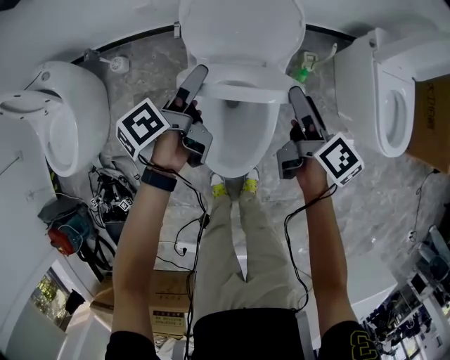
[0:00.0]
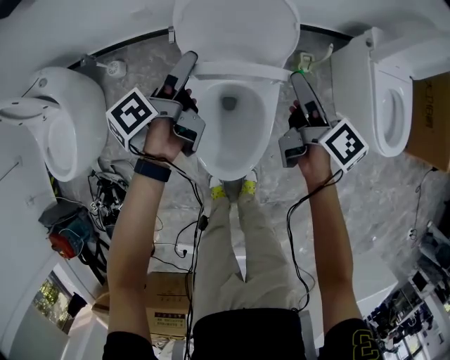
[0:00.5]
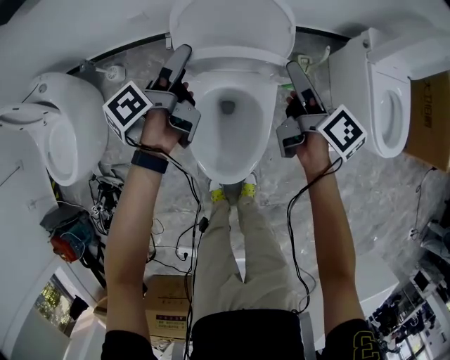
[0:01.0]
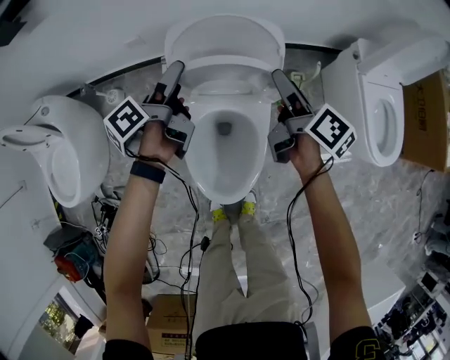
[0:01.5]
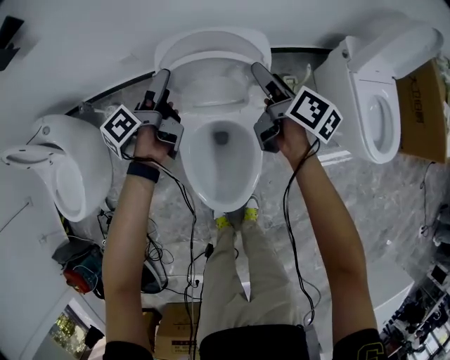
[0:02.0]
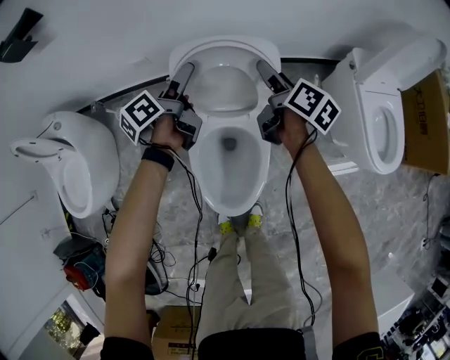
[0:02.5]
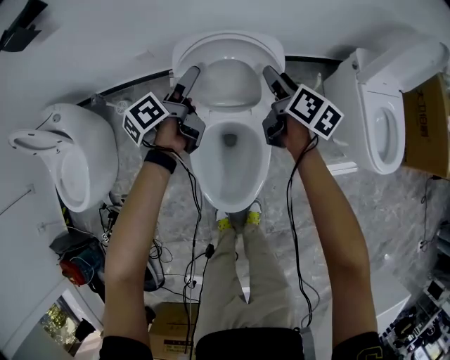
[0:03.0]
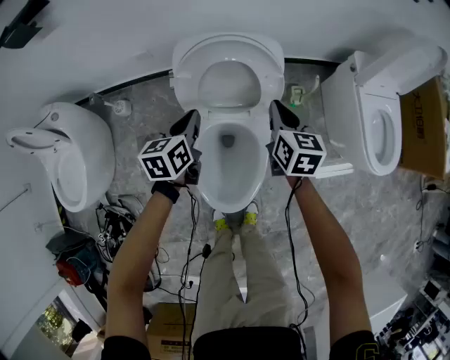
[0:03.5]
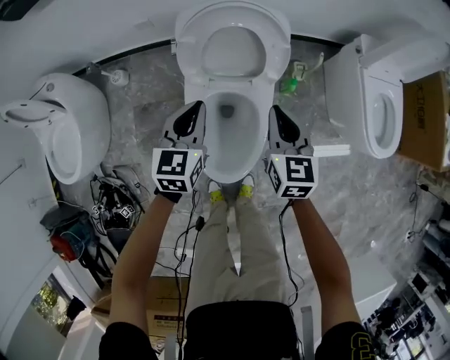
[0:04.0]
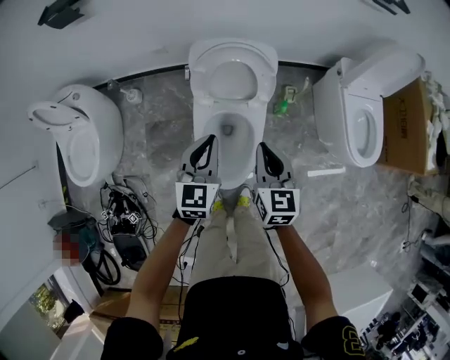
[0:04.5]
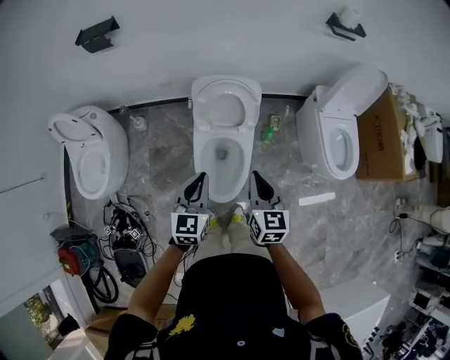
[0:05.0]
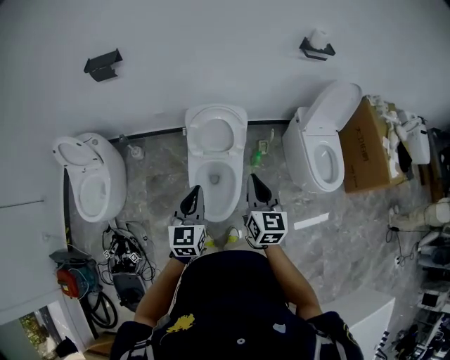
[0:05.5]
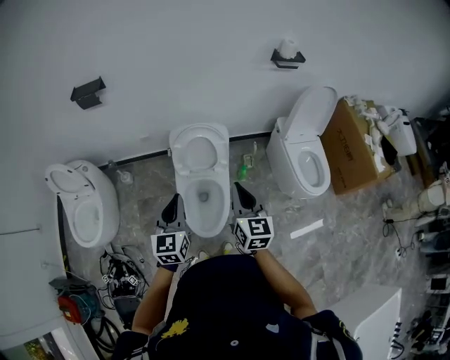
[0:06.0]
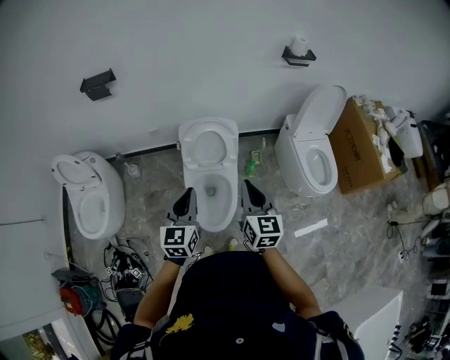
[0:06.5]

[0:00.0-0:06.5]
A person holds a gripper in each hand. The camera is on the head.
0:00.0 to 0:02.0: Both grippers move forward, some 10 cm.
0:02.0 to 0:04.5: The grippers both shift backward and upward by about 25 cm. The right gripper rotates around the line of its fingers by some 50 degrees, counterclockwise from behind, and closes up, while the left gripper twists approximately 80 degrees clockwise, seen from behind, and closes.
0:04.5 to 0:06.5: The two grippers go approximately 25 cm upward and backward.

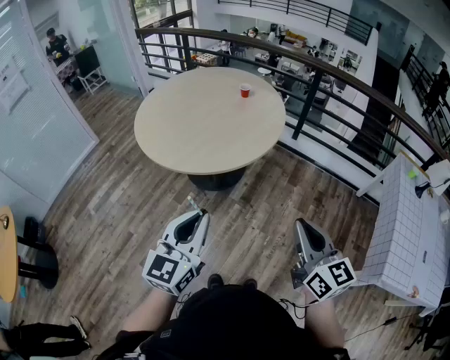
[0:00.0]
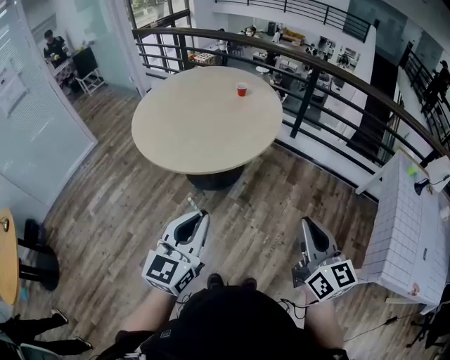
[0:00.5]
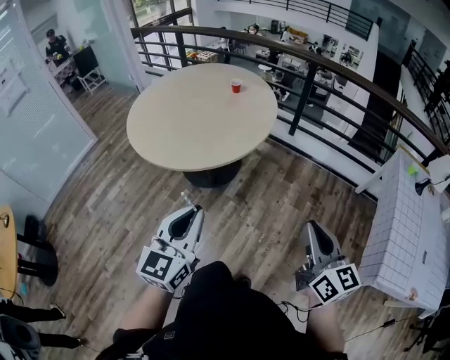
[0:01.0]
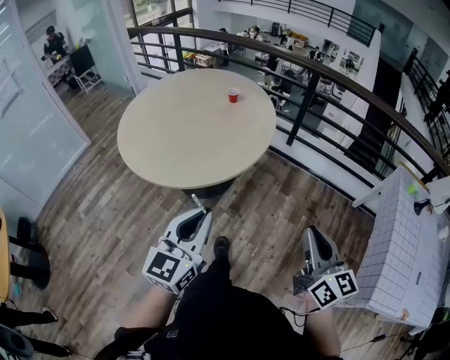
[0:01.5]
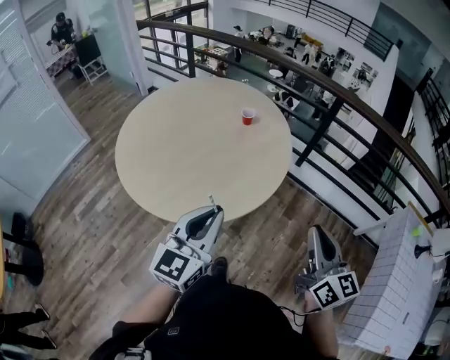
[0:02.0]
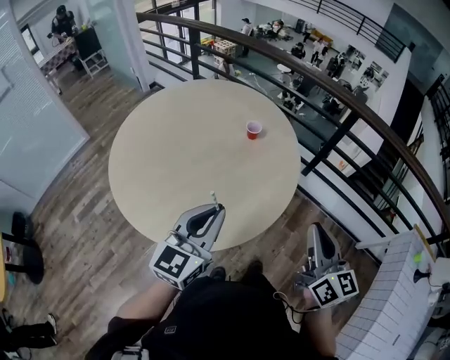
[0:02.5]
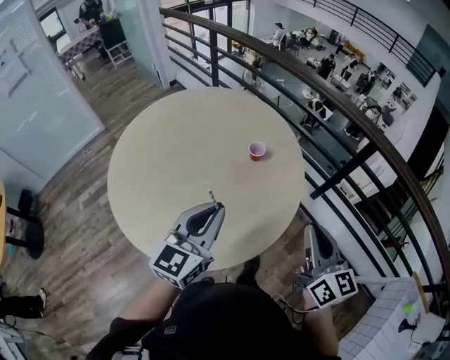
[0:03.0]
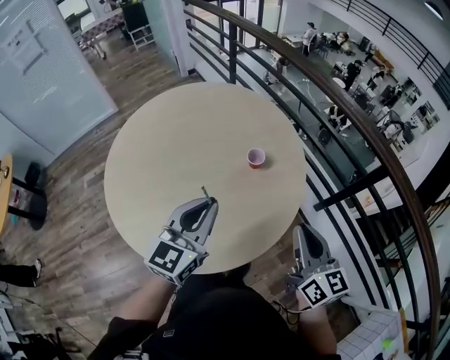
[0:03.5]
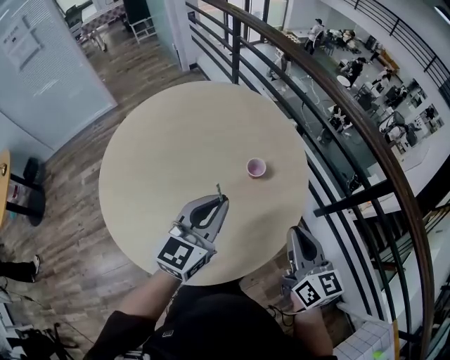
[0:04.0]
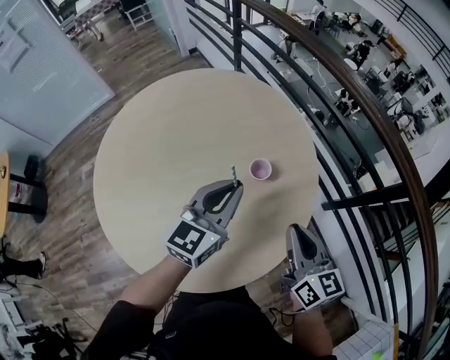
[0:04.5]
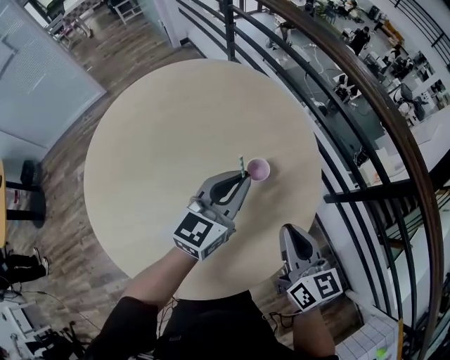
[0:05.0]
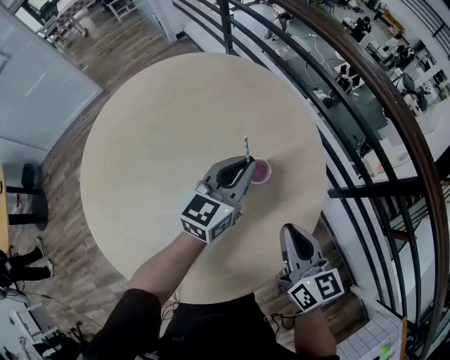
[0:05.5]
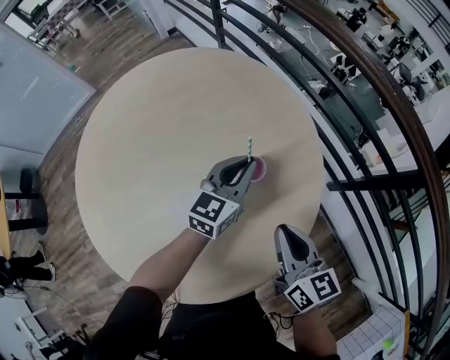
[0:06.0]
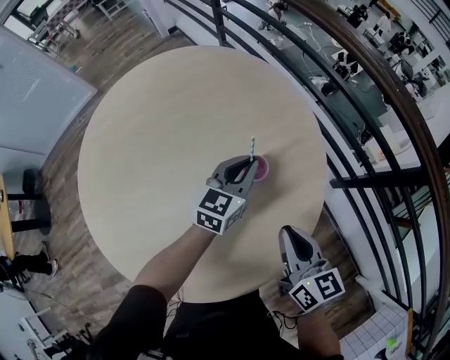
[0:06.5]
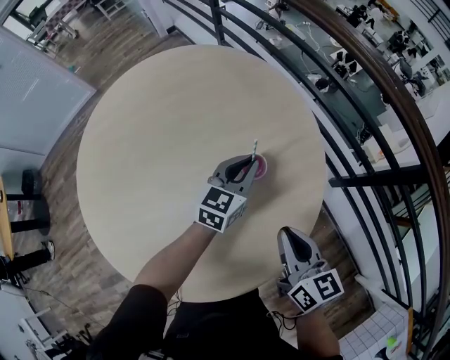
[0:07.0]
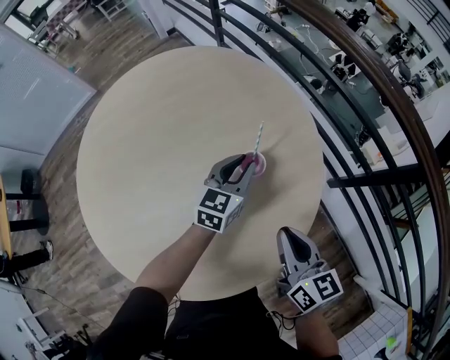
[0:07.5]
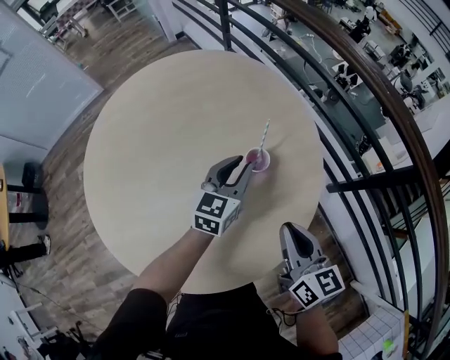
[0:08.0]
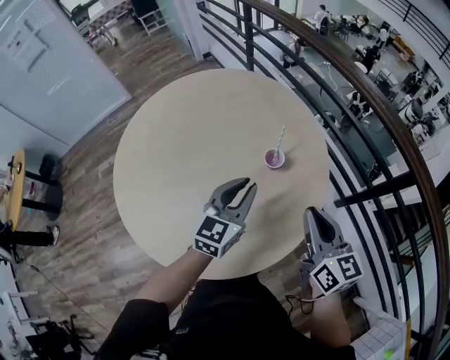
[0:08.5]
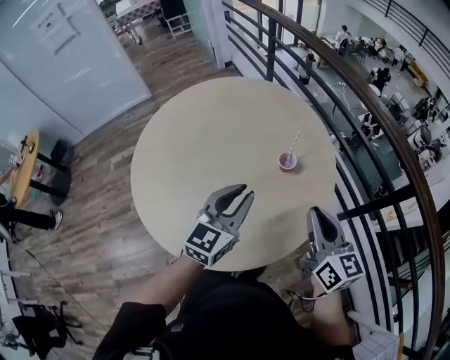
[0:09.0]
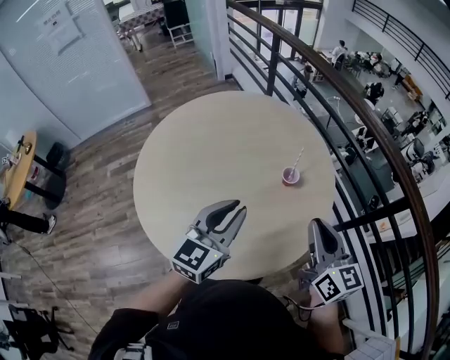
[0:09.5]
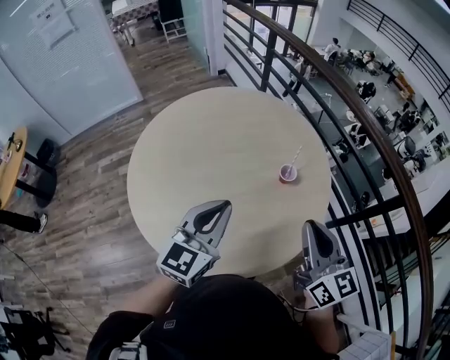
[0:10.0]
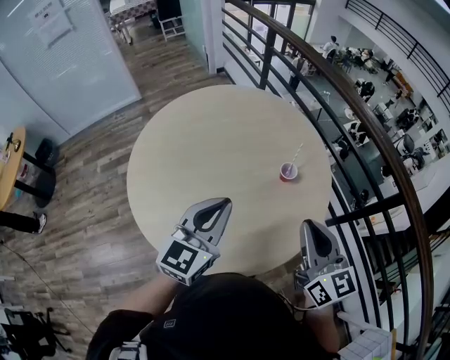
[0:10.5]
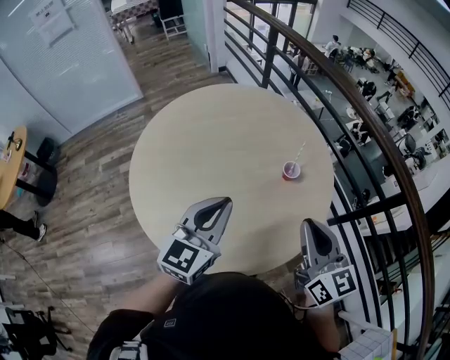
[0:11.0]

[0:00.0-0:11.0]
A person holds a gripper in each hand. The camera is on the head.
0:00.0 to 0:02.0: Both grippers travel together forward, about 30 cm.
0:02.0 to 0:03.5: The grippers both shift forward by roughly 35 cm. The right gripper swivels roughly 30 degrees, while the left gripper turns by approximately 20 degrees.
0:03.5 to 0:05.5: The grippers both shift forward and downward by some 25 cm.
0:05.5 to 0:07.5: The left gripper shifts approximately 10 cm downward.
0:07.5 to 0:09.0: The left gripper moves backward, upward and to the left, roughly 30 cm; the right gripper shifts approximately 15 cm upward.
0:09.0 to 0:11.0: Both grippers travel together to the left, roughly 10 cm.

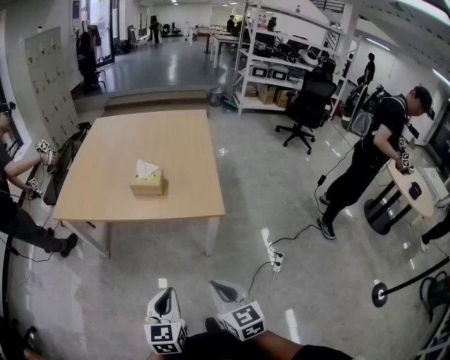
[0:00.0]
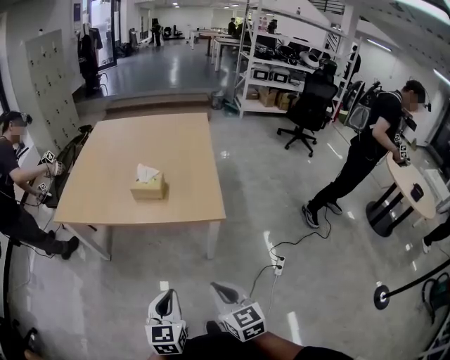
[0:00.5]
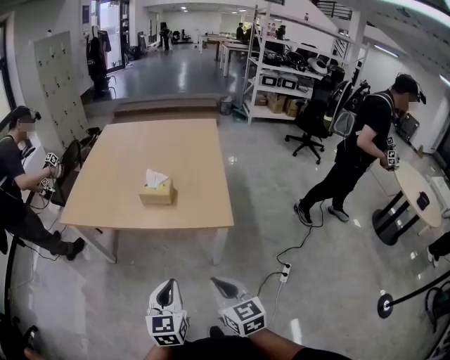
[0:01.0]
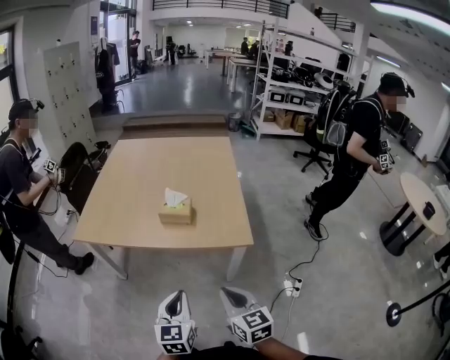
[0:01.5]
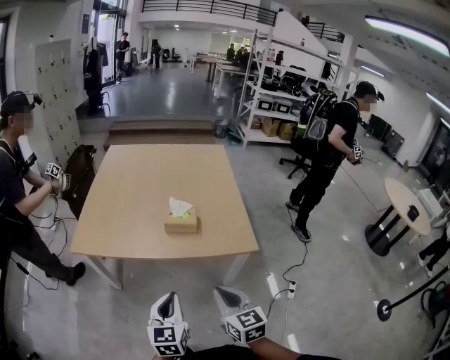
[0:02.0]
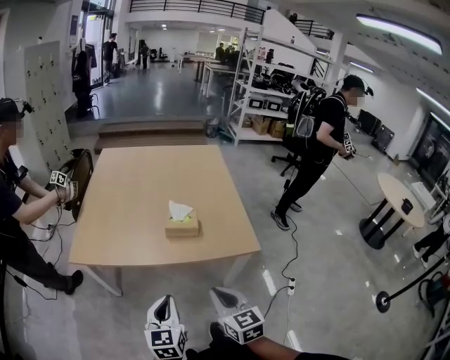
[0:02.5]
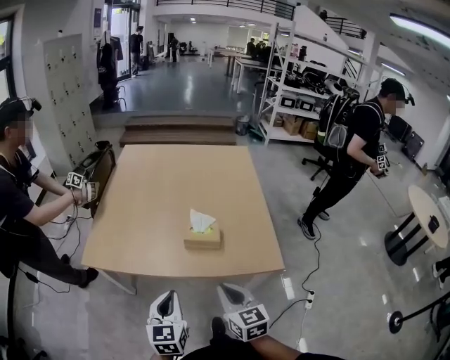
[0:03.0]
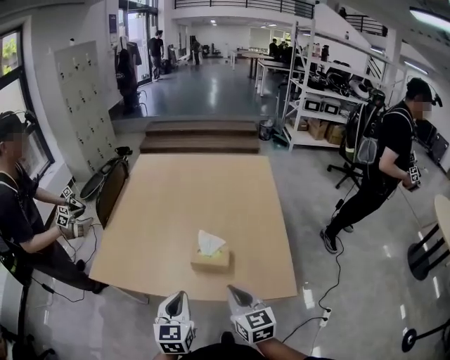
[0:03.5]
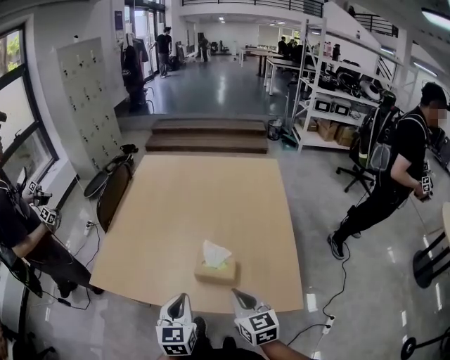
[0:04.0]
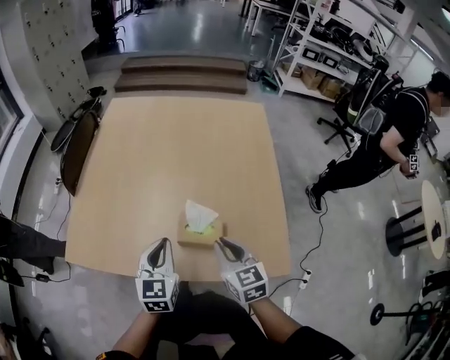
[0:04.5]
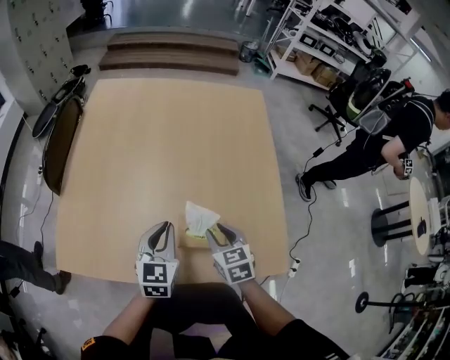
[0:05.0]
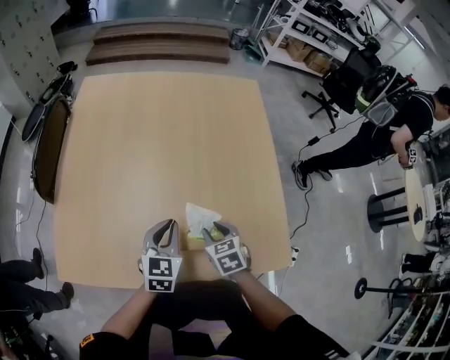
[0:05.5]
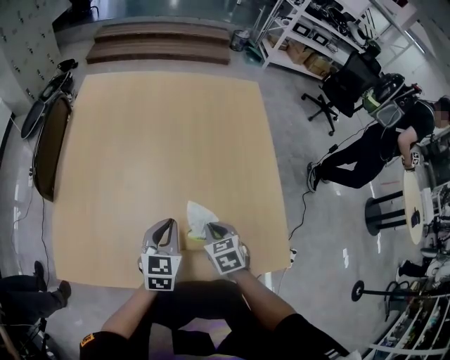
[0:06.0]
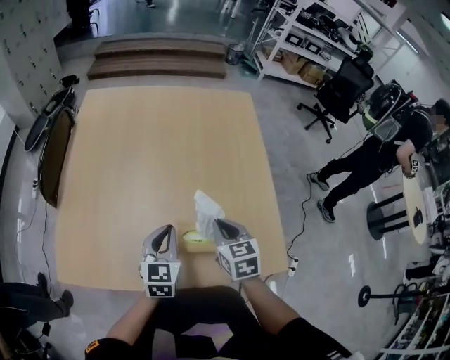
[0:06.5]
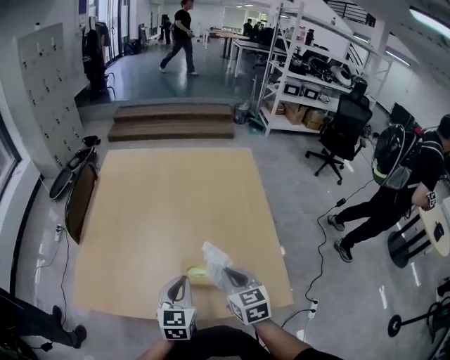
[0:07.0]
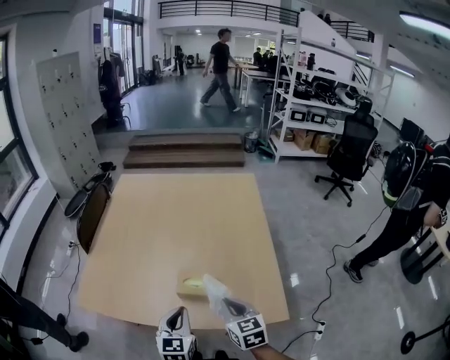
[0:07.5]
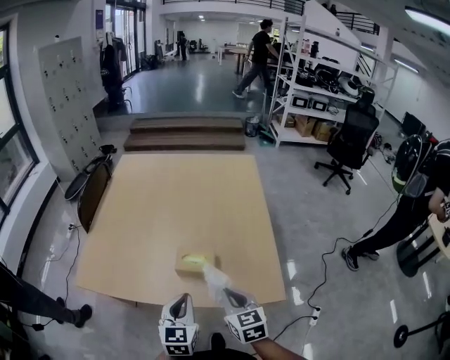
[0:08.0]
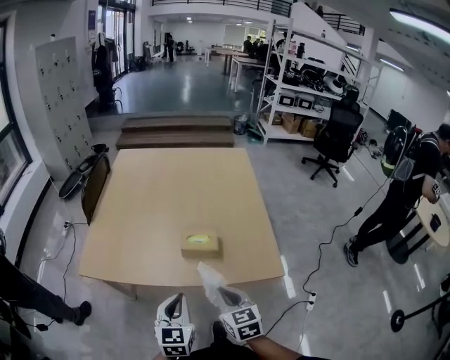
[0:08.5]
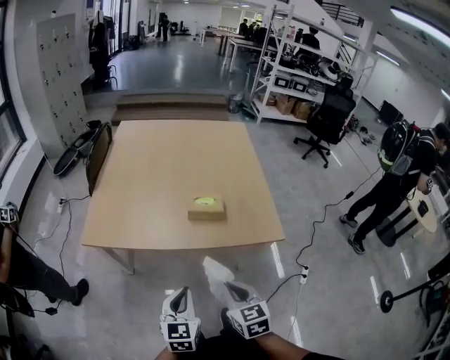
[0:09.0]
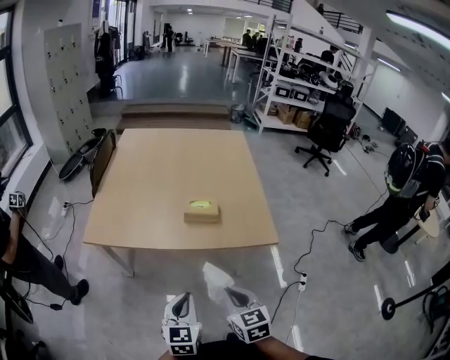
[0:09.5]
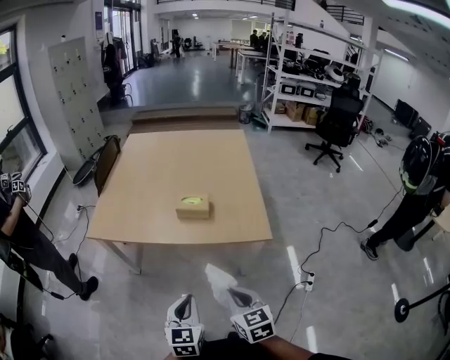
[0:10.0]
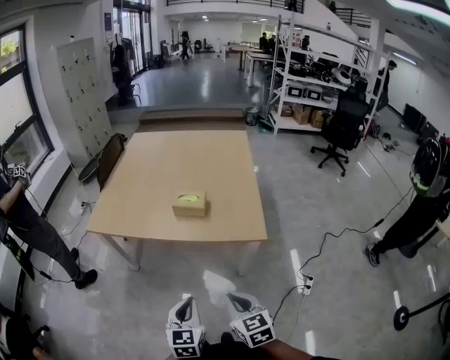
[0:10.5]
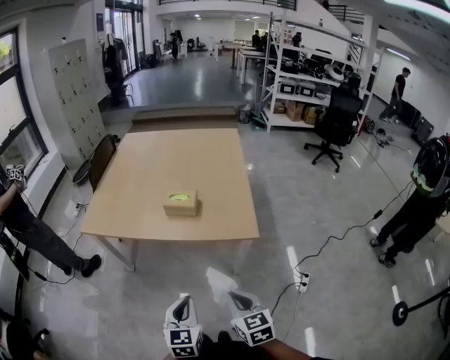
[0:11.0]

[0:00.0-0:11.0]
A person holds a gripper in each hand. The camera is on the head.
0:00.0 to 0:02.0: The left gripper shifts approximately 20 cm to the left and forward. Meanwhile the right gripper heads forward and to the left, covering about 15 cm.
0:02.0 to 0:03.5: Both grippers travel together forward, about 20 cm.
0:03.5 to 0:05.5: The left gripper heads forward, covering about 20 cm. Meanwhile the right gripper goes roughly 20 cm forward and downward, points its fingers roughly 40 degrees further downward, and opens.
0:05.5 to 0:07.5: The left gripper shifts roughly 15 cm backward; the right gripper shifts approximately 15 cm backward, upward and to the right, rotates roughly 30 degrees, and closes.
0:07.5 to 0:09.0: Both grippers move backward, roughly 20 cm.
0:09.0 to 0:11.0: The grippers both shift to the right and backward by some 20 cm.
